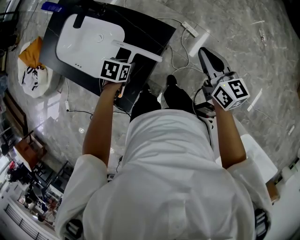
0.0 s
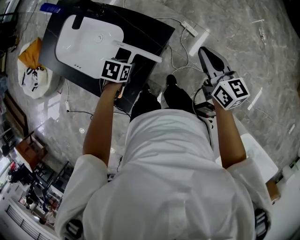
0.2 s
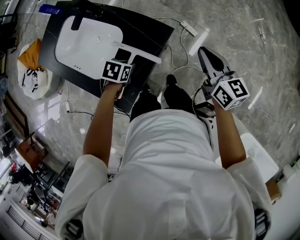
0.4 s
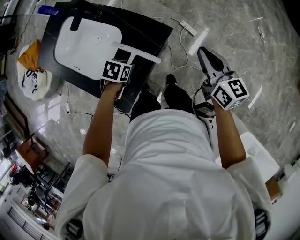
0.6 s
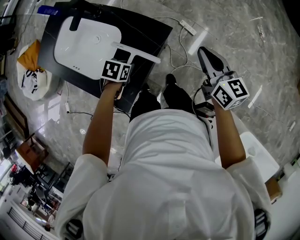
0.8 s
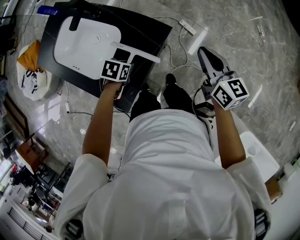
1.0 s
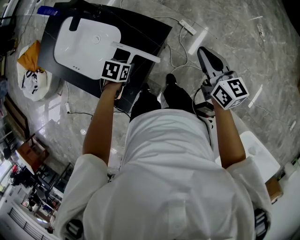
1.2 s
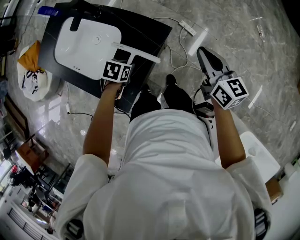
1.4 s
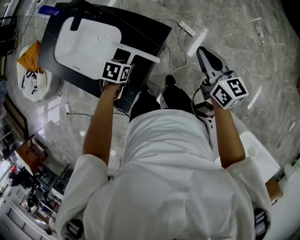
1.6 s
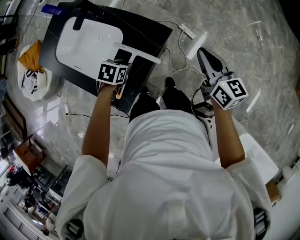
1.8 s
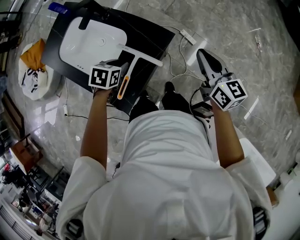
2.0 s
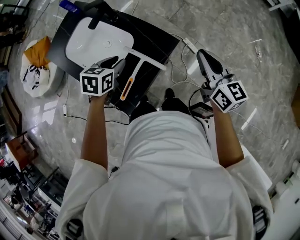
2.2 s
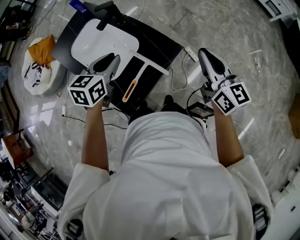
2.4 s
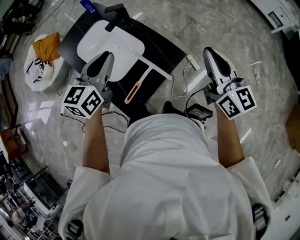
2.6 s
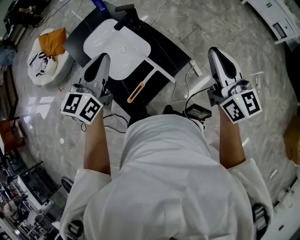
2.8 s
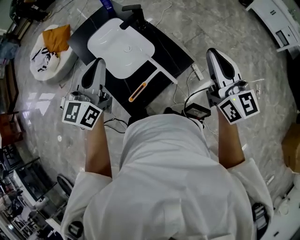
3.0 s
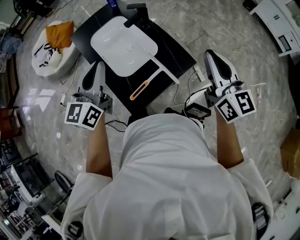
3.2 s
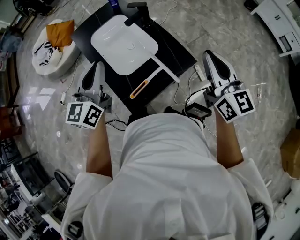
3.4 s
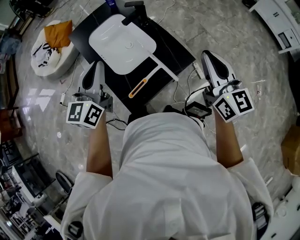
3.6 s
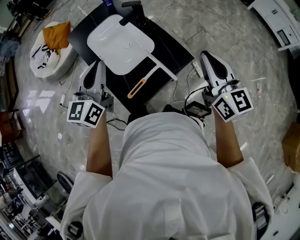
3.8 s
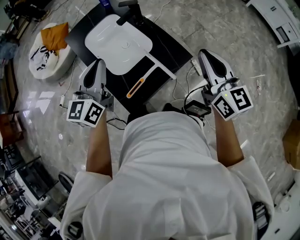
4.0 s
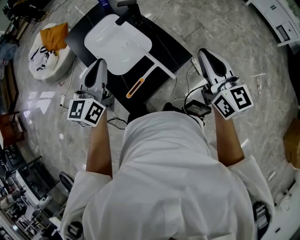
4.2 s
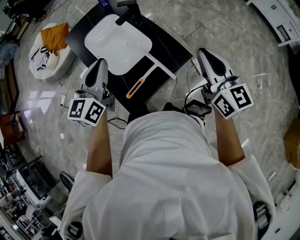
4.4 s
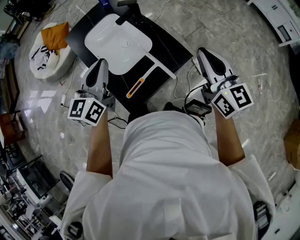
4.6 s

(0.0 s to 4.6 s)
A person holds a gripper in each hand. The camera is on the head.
0.0 s - 1.6 s: The grippers stay close to where they were, moving slightly.
1.6 s - 3.0 s: The right gripper moves upward, about 20 cm, and rotates some 30 degrees. Meanwhile the left gripper is displaced upward by approximately 35 cm, tips its fingers upward by roughly 70 degrees, and closes its fingers.
3.0 s - 4.6 s: The grippers move only a little.

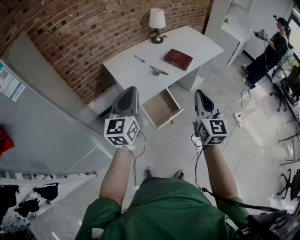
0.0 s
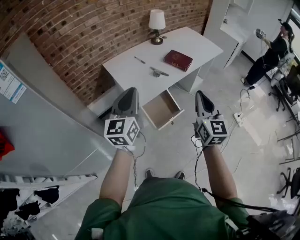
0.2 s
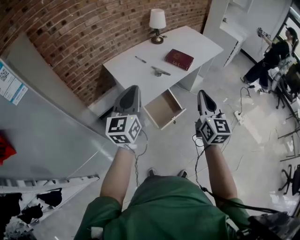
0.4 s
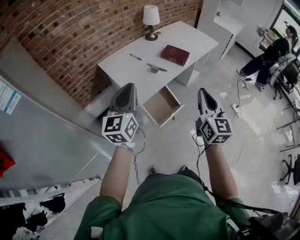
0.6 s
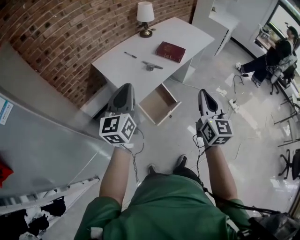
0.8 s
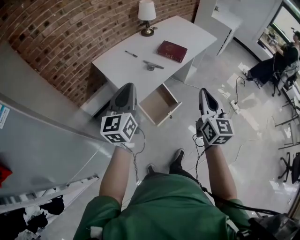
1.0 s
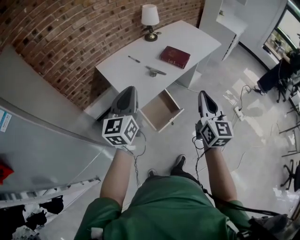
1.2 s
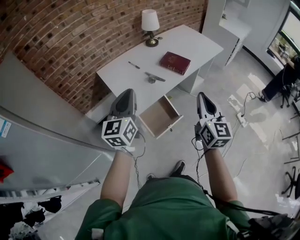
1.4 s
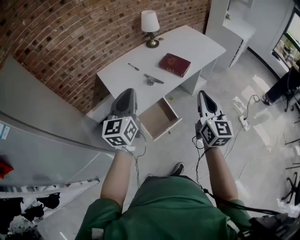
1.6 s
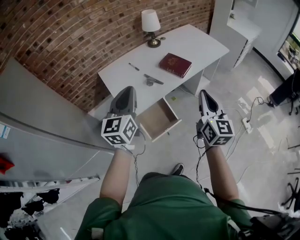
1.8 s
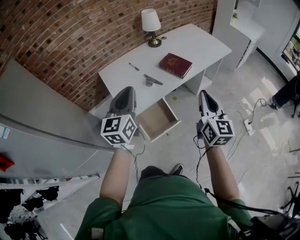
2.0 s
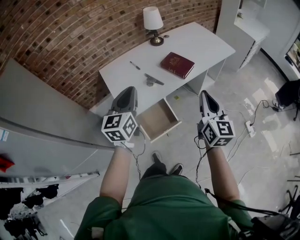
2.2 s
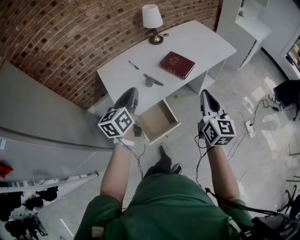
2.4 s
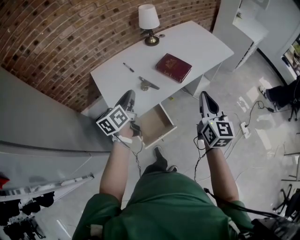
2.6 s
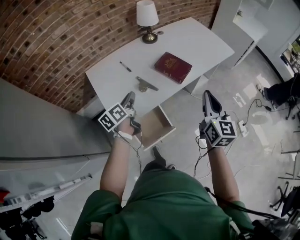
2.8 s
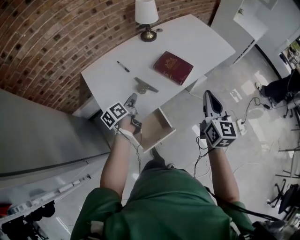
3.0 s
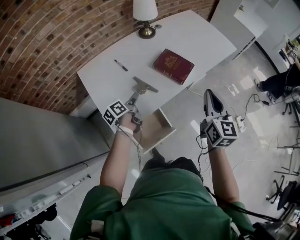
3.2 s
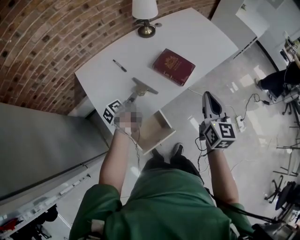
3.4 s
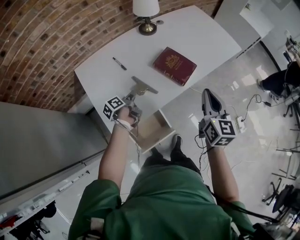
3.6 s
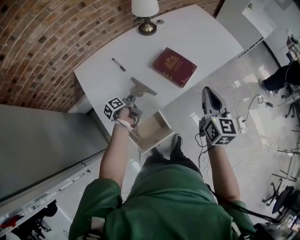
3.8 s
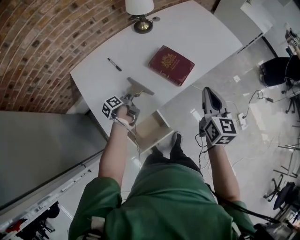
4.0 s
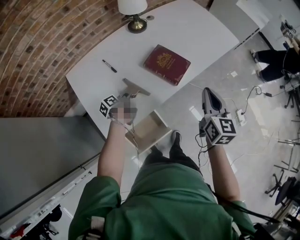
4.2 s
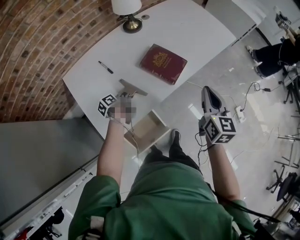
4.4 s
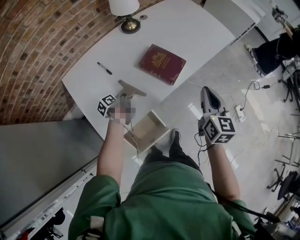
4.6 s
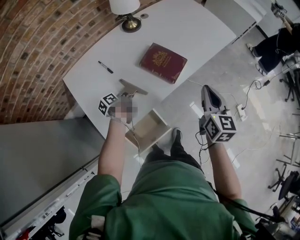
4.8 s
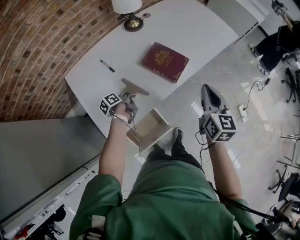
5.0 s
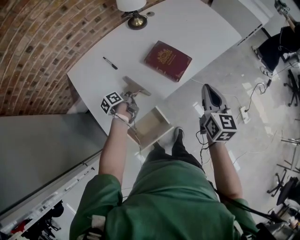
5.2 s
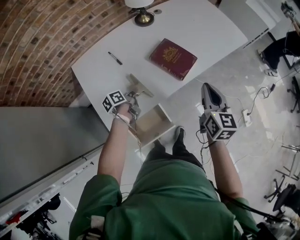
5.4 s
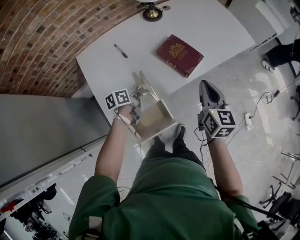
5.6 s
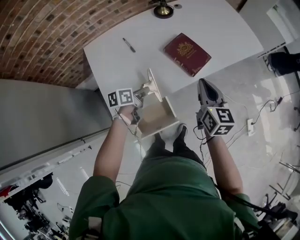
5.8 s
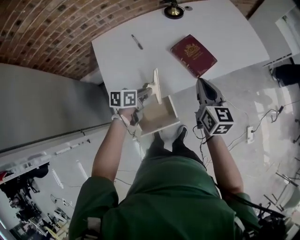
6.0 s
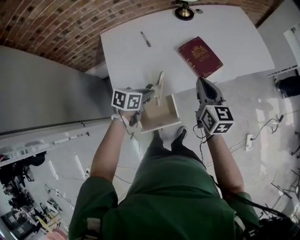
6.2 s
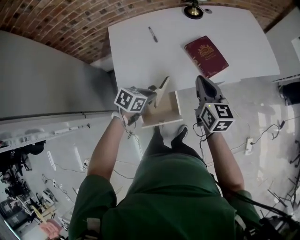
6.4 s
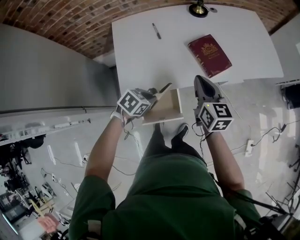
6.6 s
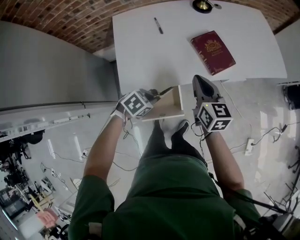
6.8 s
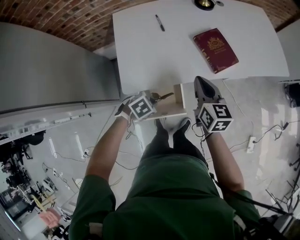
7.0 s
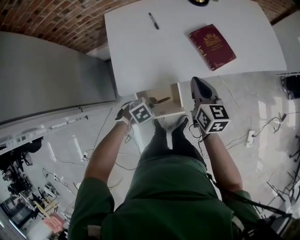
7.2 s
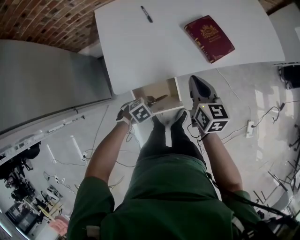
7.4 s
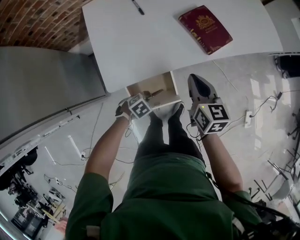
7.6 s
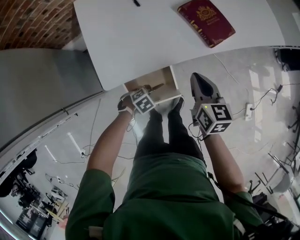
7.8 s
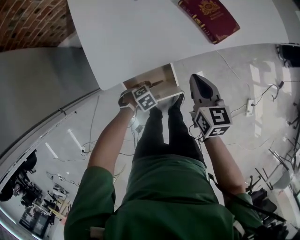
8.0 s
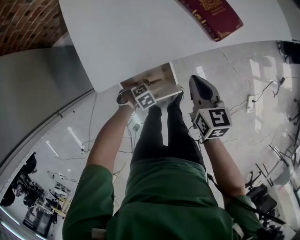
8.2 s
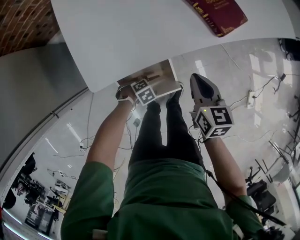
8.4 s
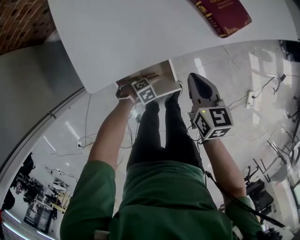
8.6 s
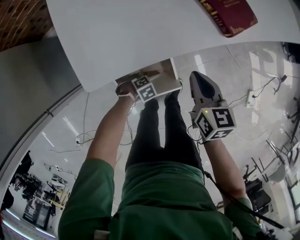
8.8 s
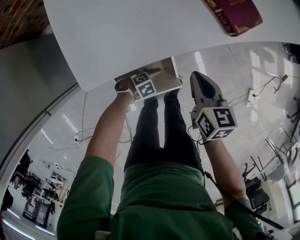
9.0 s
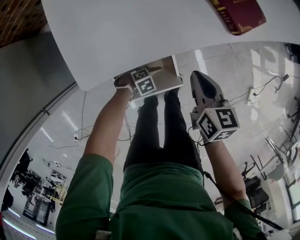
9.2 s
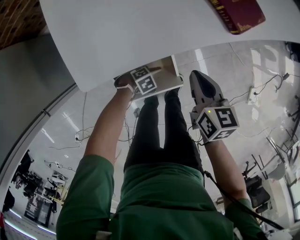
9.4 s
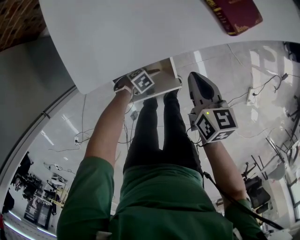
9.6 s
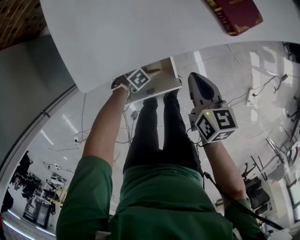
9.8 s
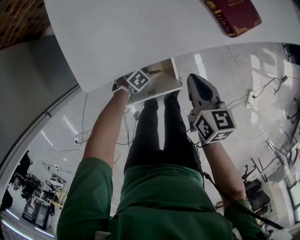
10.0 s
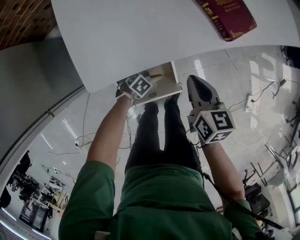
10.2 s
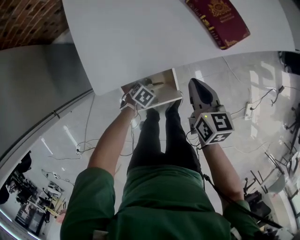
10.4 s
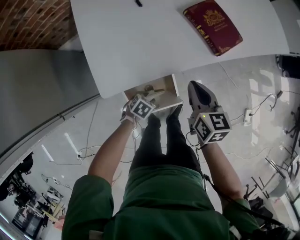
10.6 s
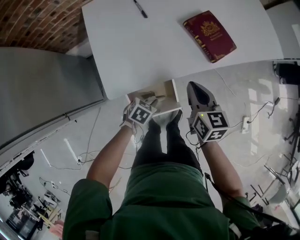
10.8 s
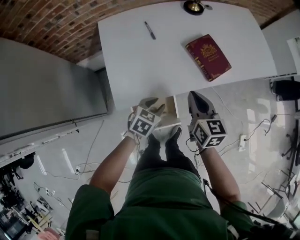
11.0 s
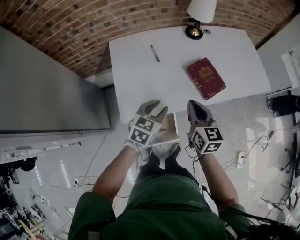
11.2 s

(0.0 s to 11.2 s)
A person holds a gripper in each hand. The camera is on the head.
0.0 s - 1.6 s: The two grippers go roughly 15 cm forward and to the right.
1.6 s - 3.2 s: The right gripper is displaced forward by about 25 cm. Meanwhile the left gripper goes approximately 40 cm downward and forward, and rotates around the line of its fingers by some 60 degrees, counterclockwise from behind.
3.2 s - 4.8 s: The right gripper is displaced forward, downward and to the right by roughly 10 cm; the left gripper goes about 15 cm downward and forward, and closes its fingers.
4.8 s - 6.4 s: The right gripper goes some 15 cm to the left, and rotates approximately 30 degrees. The left gripper heads backward and upward, covering roughly 20 cm, and twists roughly 60 degrees clockwise, seen from behind.
6.4 s - 8.0 s: The right gripper moves downward, approximately 15 cm; the left gripper goes about 30 cm downward, and rotates about 50 degrees.
8.0 s - 9.6 s: The grippers both shift downward by roughly 10 cm.
9.6 s - 11.2 s: The left gripper travels upward by roughly 50 cm, points its fingers roughly 40 degrees further upward, and opens its fingers. The right gripper moves upward, approximately 25 cm, and rotates approximately 20 degrees.

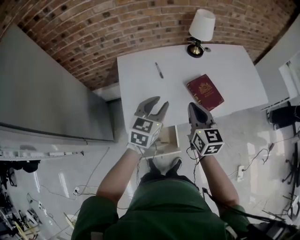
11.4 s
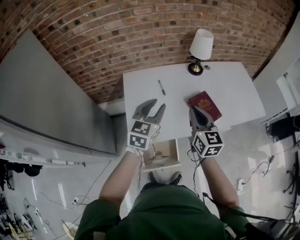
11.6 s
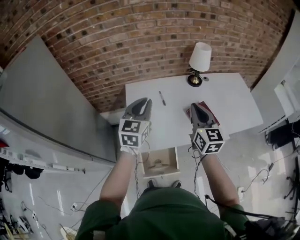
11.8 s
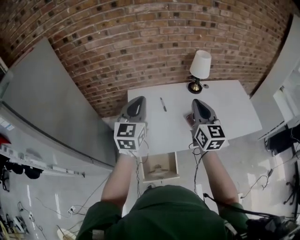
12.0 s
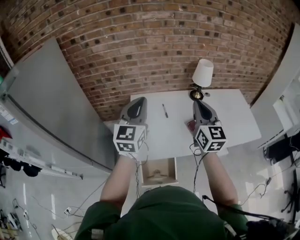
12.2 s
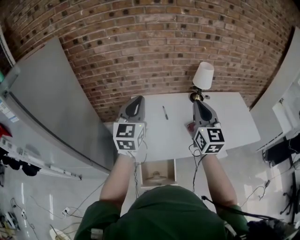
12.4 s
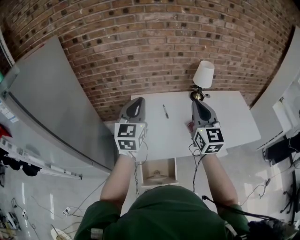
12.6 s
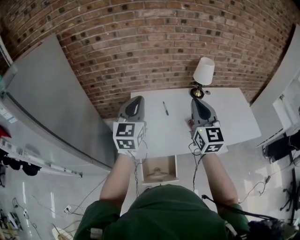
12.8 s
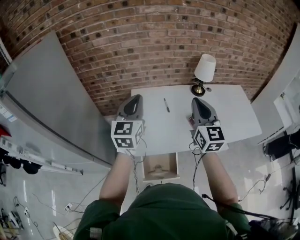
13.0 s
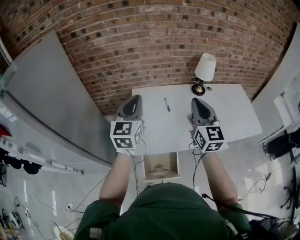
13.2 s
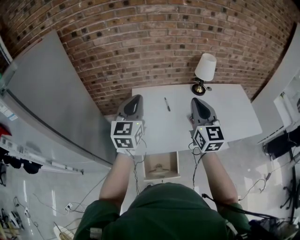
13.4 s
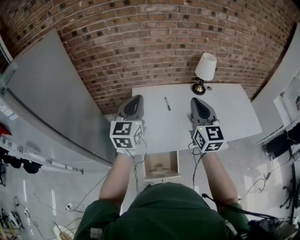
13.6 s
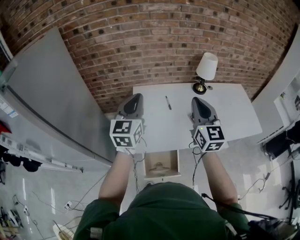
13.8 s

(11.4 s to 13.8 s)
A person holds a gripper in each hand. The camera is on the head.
11.4 s - 12.6 s: The right gripper heads upward, covering roughly 20 cm, and swivels some 30 degrees. Meanwhile the left gripper travels upward and to the left by roughly 25 cm, changes its angle by about 30 degrees, and closes.
12.6 s - 13.8 s: The grippers stay close to where they were, moving slightly.

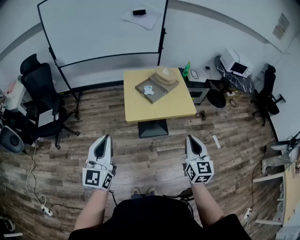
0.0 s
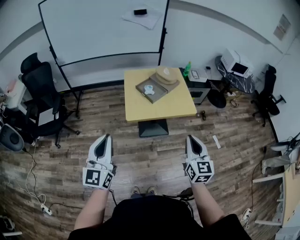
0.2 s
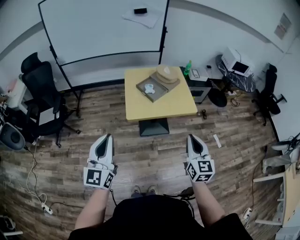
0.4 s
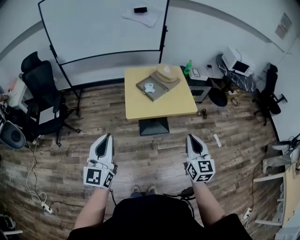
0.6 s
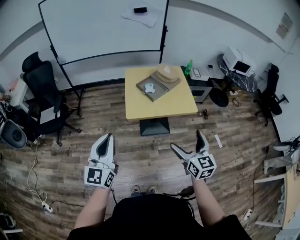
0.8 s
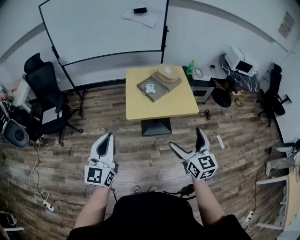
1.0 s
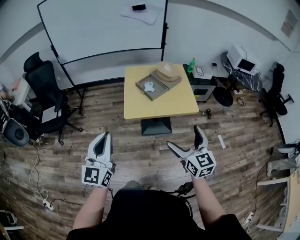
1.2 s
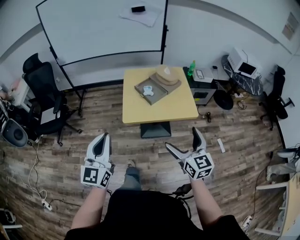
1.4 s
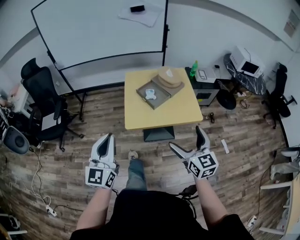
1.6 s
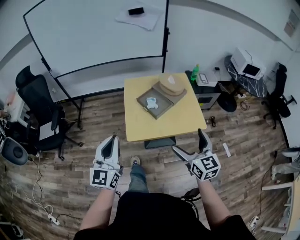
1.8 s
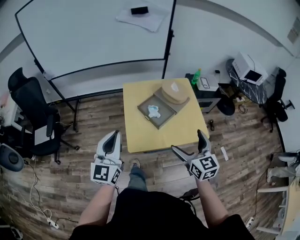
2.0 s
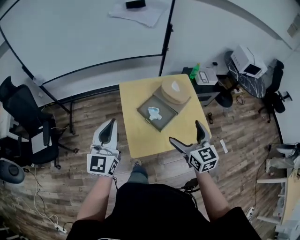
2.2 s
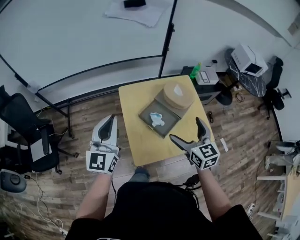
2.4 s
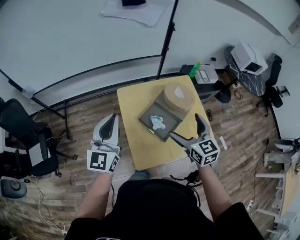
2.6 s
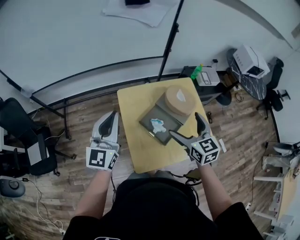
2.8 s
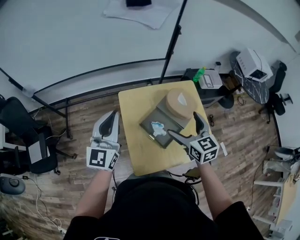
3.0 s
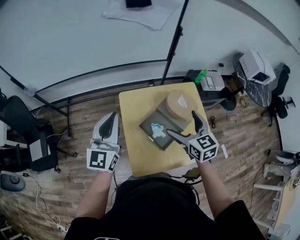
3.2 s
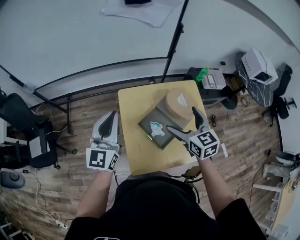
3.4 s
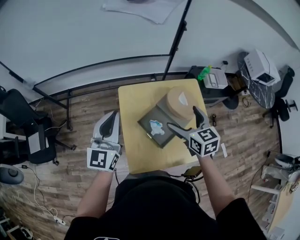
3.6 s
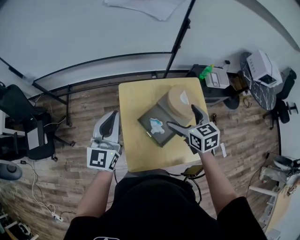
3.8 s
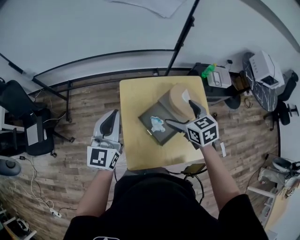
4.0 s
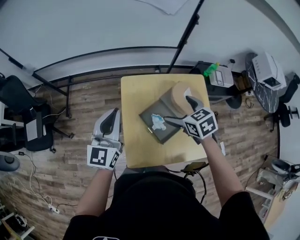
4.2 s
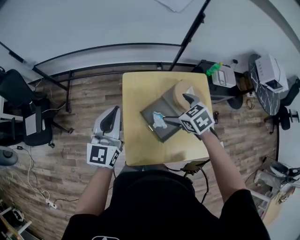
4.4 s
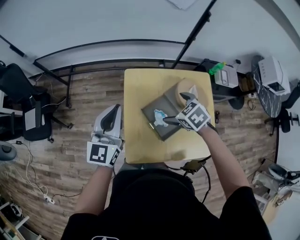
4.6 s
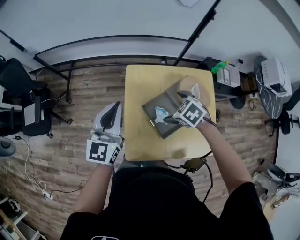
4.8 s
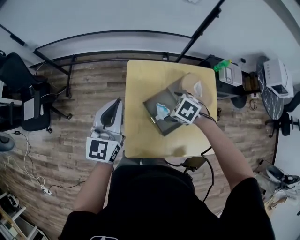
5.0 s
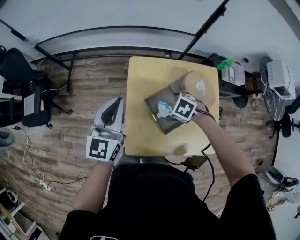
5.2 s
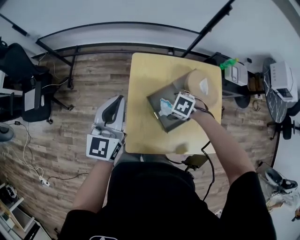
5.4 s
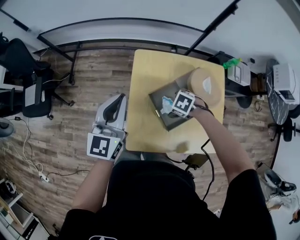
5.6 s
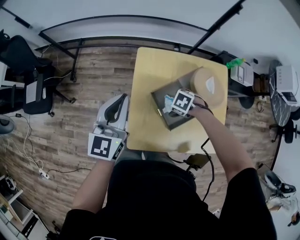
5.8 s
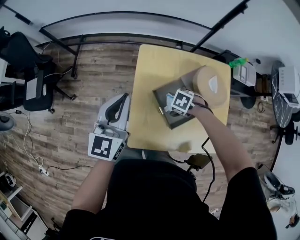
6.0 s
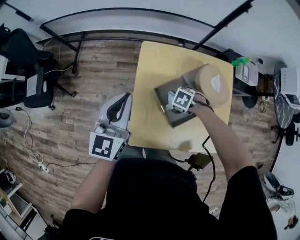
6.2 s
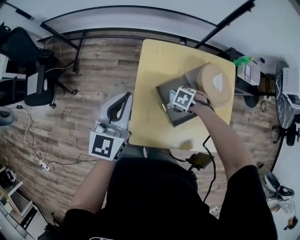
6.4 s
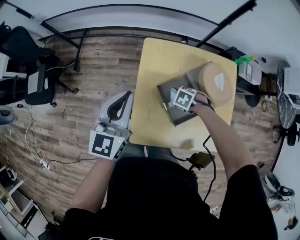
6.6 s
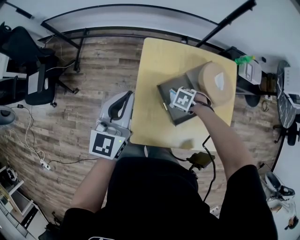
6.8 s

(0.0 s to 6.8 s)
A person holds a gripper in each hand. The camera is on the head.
0.0 s - 1.4 s: The right gripper is displaced forward by approximately 5 cm, and opens its fingers. Meanwhile the left gripper goes some 5 cm to the right.
1.4 s - 2.8 s: Both grippers are carried forward, about 50 cm.
2.8 s - 4.0 s: The left gripper shifts by about 5 cm, while the right gripper shifts about 10 cm forward and downward, and swivels approximately 20 degrees.
4.0 s - 5.4 s: The right gripper shifts about 20 cm downward, and tilts its fingers about 40 degrees downward. Meanwhile the left gripper goes about 5 cm downward.
5.4 s - 6.8 s: The right gripper moves downward, some 10 cm, and closes.
